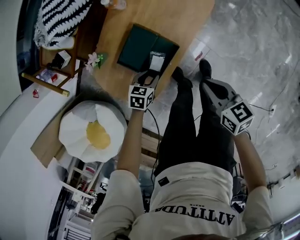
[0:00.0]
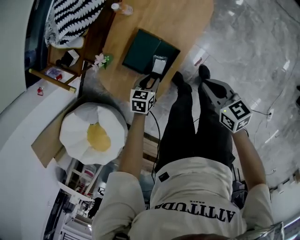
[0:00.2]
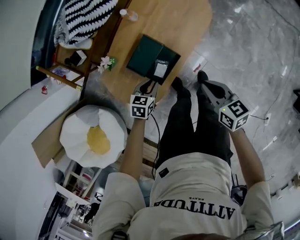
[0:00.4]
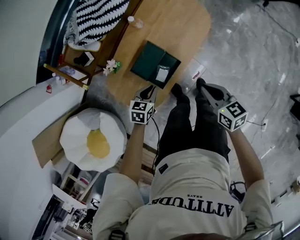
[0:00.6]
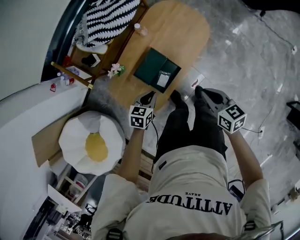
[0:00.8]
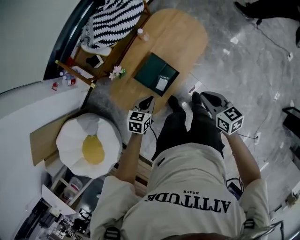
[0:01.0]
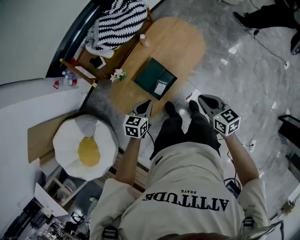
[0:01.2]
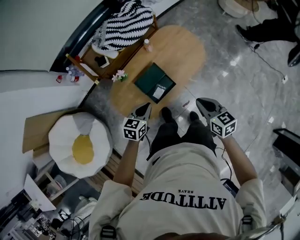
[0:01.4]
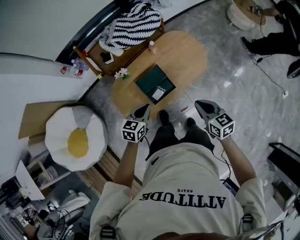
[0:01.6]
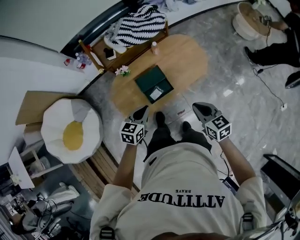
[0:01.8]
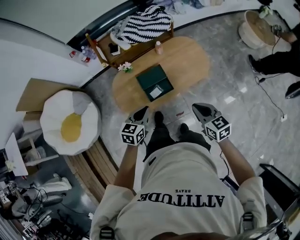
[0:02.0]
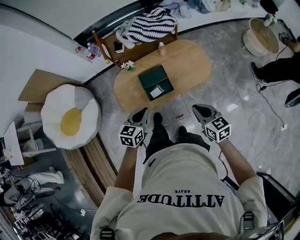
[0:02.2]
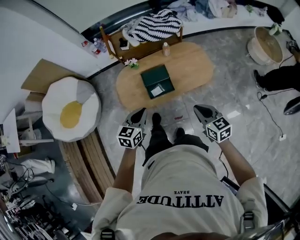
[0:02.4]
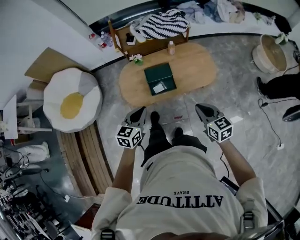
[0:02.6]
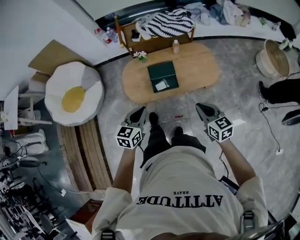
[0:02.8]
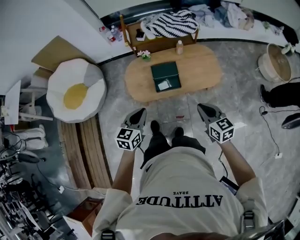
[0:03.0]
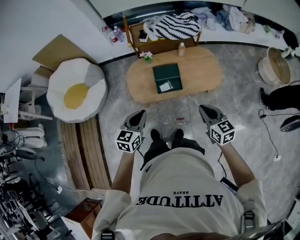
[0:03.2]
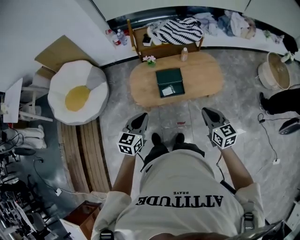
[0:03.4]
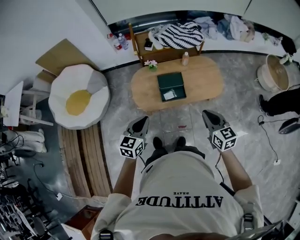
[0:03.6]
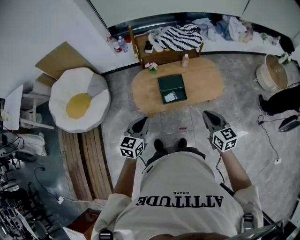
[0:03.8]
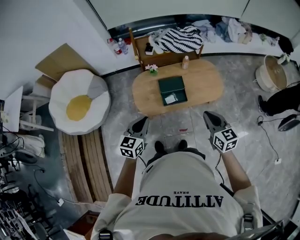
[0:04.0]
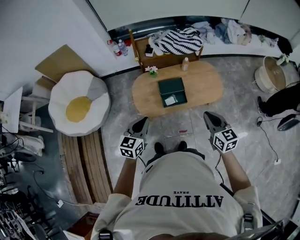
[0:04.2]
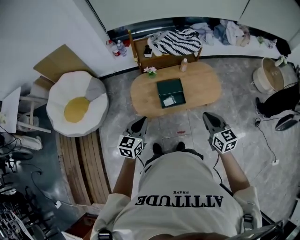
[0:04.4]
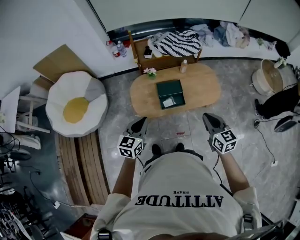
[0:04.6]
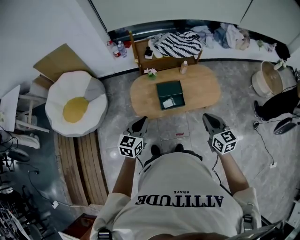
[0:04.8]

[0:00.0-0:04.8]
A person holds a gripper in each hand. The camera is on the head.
0:00.0 to 0:01.6: The two grippers go some 30 cm upward. The left gripper turns by some 40 degrees, and closes up, while the right gripper changes its angle by about 30 degrees.
0:01.6 to 0:03.2: The right gripper ends up roughly 15 cm from where it was, and changes its angle by roughly 20 degrees; the left gripper ends up about 25 cm from where it was, and rotates some 30 degrees.
0:03.2 to 0:04.8: Both grippers move to the left, some 5 cm.

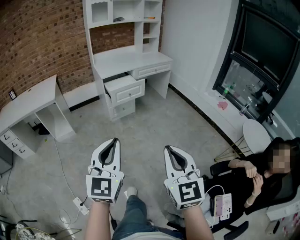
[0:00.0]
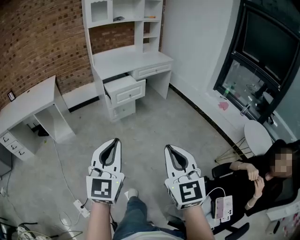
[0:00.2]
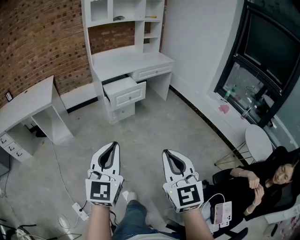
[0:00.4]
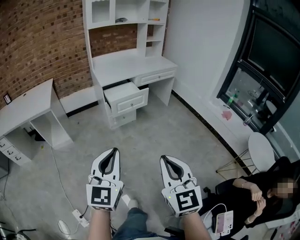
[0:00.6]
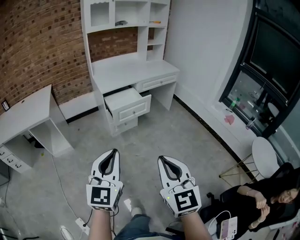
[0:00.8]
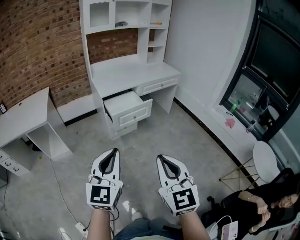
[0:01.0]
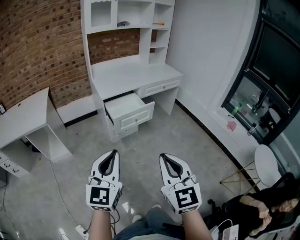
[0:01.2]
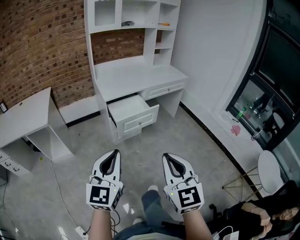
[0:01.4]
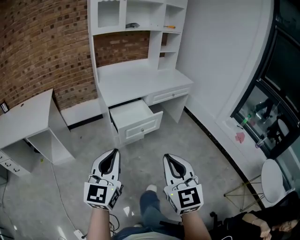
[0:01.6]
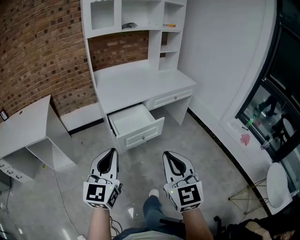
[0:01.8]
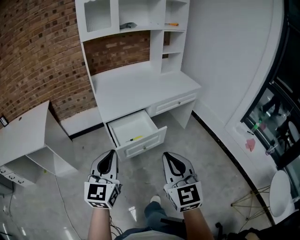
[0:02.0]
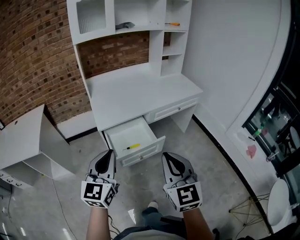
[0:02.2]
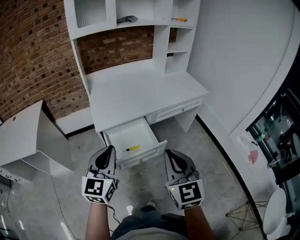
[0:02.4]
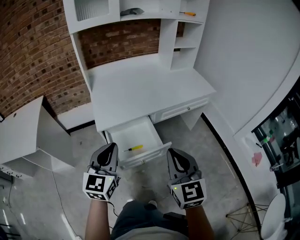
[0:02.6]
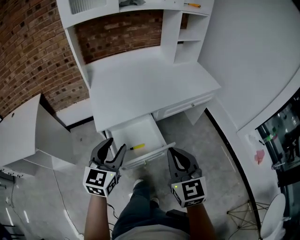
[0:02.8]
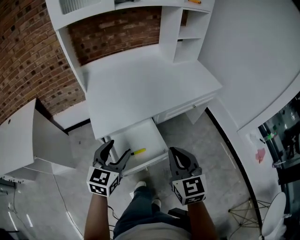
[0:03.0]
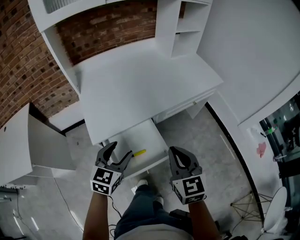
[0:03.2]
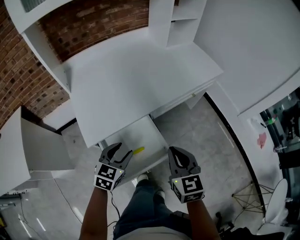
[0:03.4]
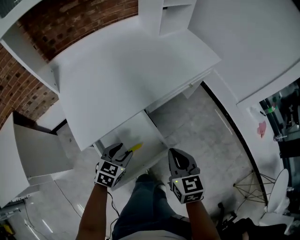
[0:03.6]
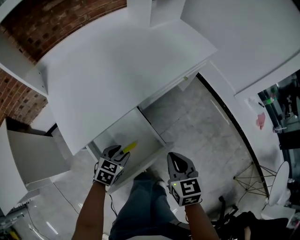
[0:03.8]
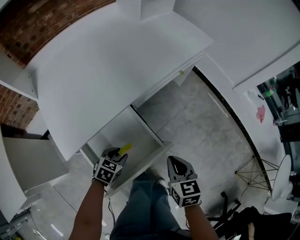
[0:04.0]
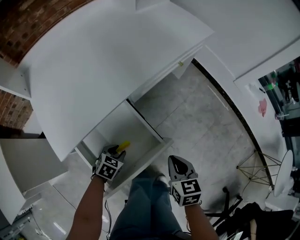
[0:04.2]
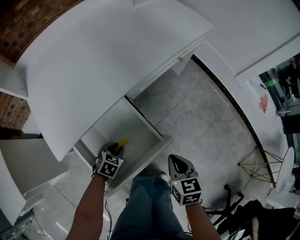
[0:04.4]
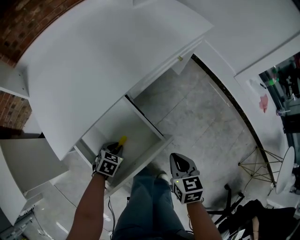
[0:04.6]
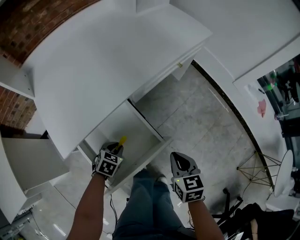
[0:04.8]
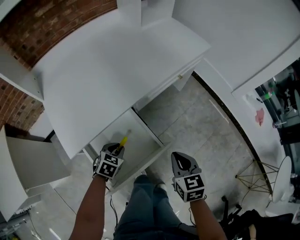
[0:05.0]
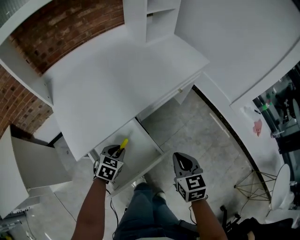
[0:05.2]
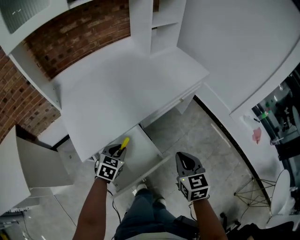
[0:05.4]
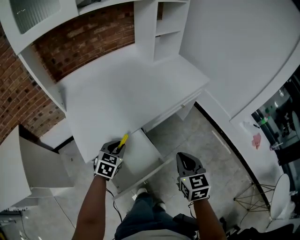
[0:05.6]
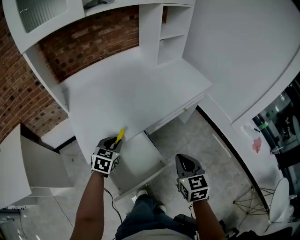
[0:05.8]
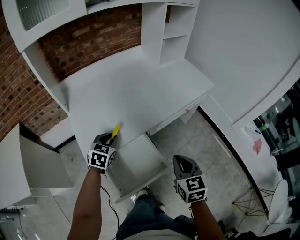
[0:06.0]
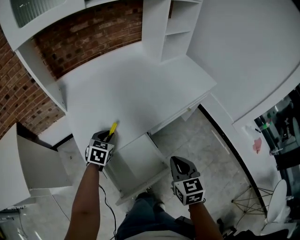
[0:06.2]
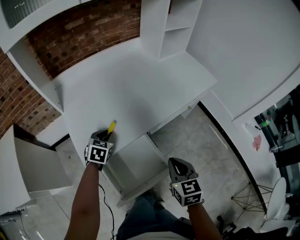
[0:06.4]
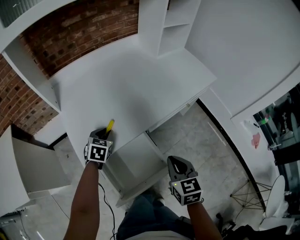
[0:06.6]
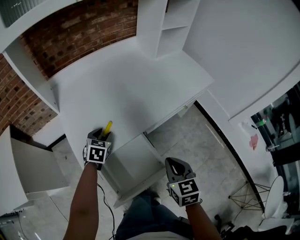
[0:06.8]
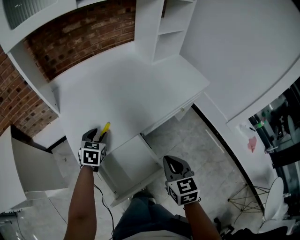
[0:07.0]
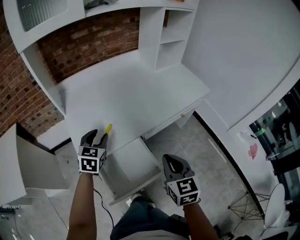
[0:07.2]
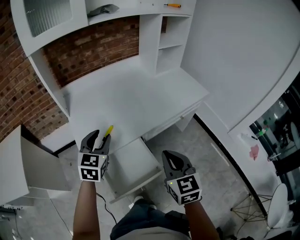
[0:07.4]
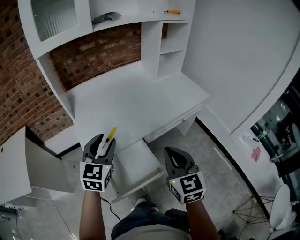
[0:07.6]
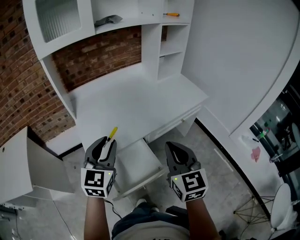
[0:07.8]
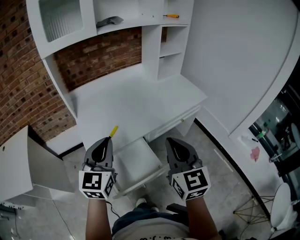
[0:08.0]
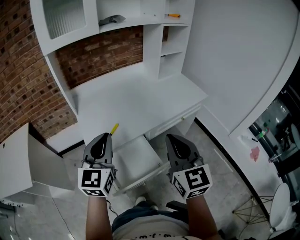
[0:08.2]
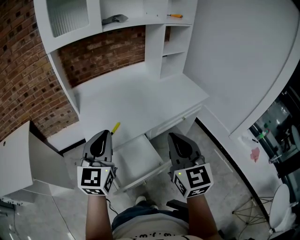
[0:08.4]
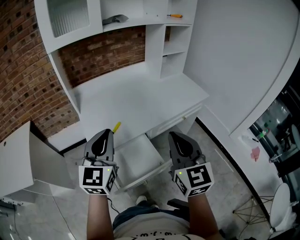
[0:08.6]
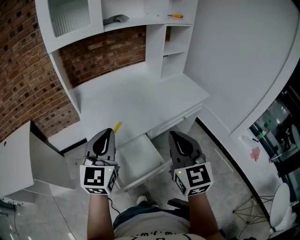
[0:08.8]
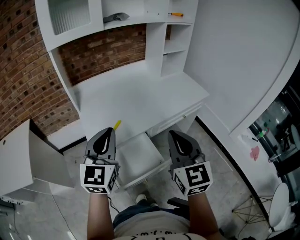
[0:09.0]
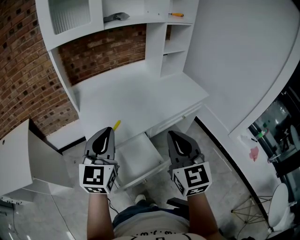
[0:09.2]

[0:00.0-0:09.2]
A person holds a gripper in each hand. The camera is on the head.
0:00.0 to 0:01.6: The pair of grippers is taken forward, approximately 40 cm.
0:01.6 to 0:03.0: Both grippers are carried forward, approximately 50 cm. The left gripper changes its angle by roughly 30 degrees, and opens.
0:03.0 to 0:04.6: Both grippers travel together downward, roughly 35 cm. The left gripper tips its fingers downward by approximately 40 degrees, and closes. Meanwhile the right gripper turns by approximately 40 degrees.
0:04.6 to 0:06.2: The right gripper is displaced upward, forward and to the left by some 20 cm, and rotates approximately 20 degrees. Meanwhile the left gripper is displaced upward, forward and to the left by approximately 30 cm, and swivels some 30 degrees.
0:06.2 to 0:07.6: The right gripper moves upward, approximately 15 cm. The left gripper is displaced upward and backward by roughly 25 cm, and changes its angle by roughly 30 degrees.
0:07.6 to 0:09.2: The left gripper moves upward and backward, some 10 cm, and closes its fingers; the right gripper moves upward, some 5 cm.

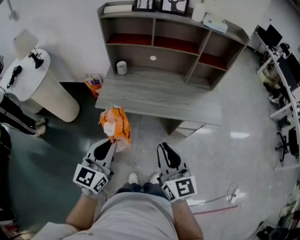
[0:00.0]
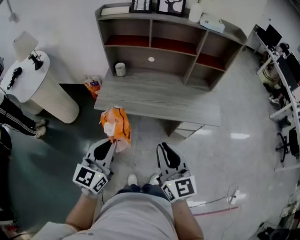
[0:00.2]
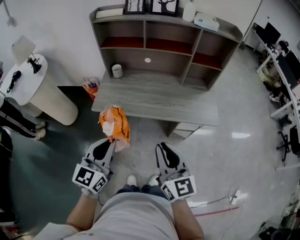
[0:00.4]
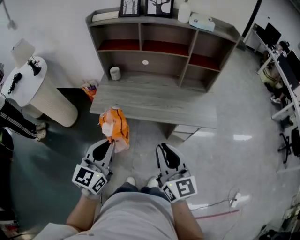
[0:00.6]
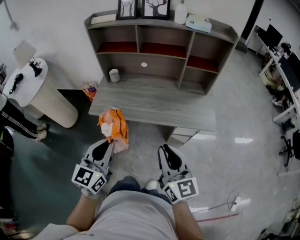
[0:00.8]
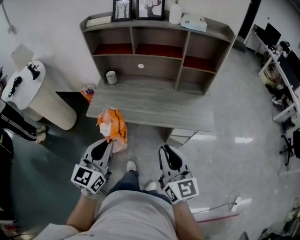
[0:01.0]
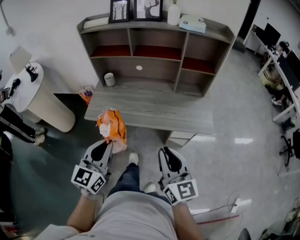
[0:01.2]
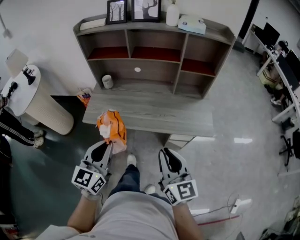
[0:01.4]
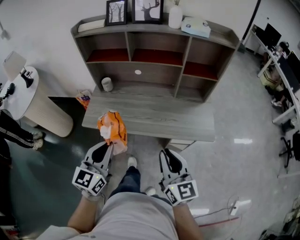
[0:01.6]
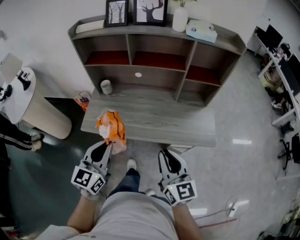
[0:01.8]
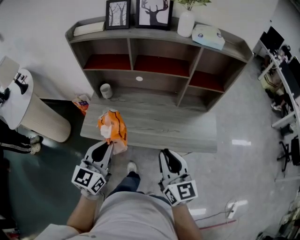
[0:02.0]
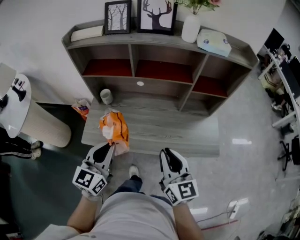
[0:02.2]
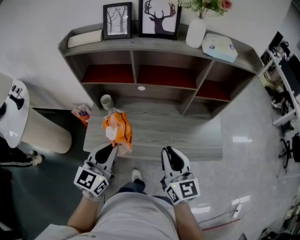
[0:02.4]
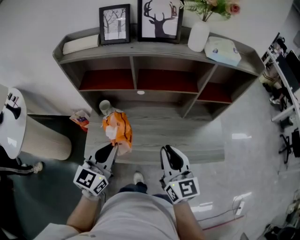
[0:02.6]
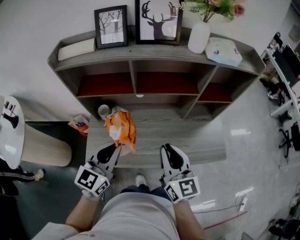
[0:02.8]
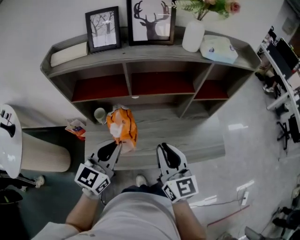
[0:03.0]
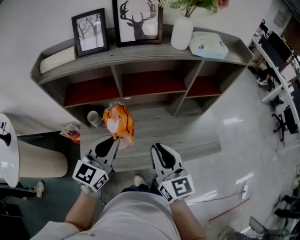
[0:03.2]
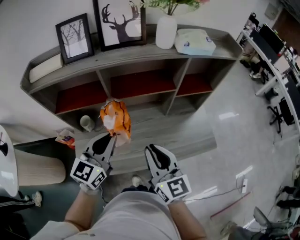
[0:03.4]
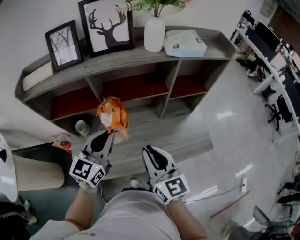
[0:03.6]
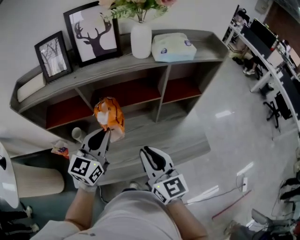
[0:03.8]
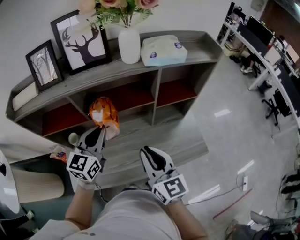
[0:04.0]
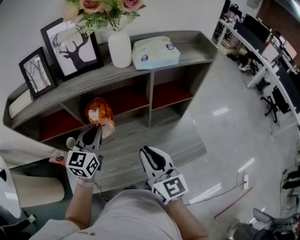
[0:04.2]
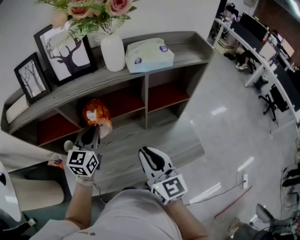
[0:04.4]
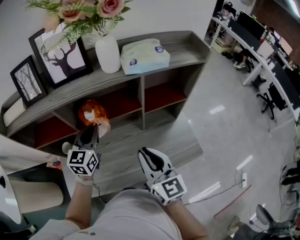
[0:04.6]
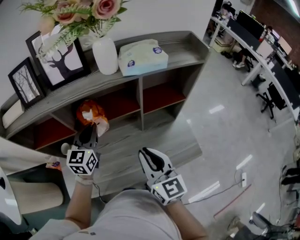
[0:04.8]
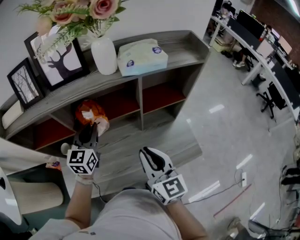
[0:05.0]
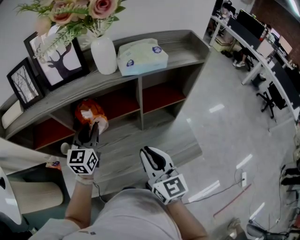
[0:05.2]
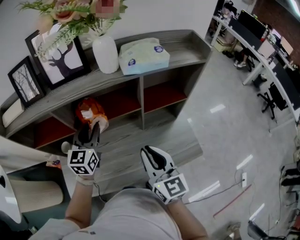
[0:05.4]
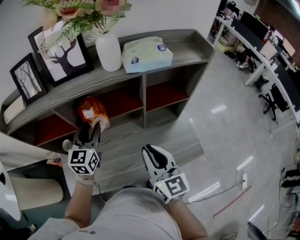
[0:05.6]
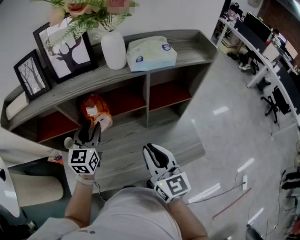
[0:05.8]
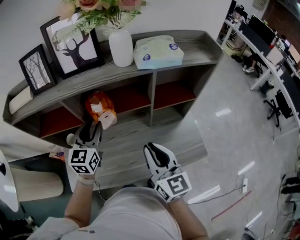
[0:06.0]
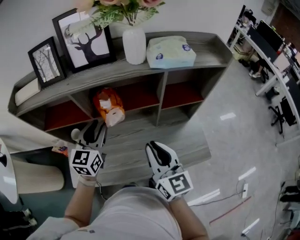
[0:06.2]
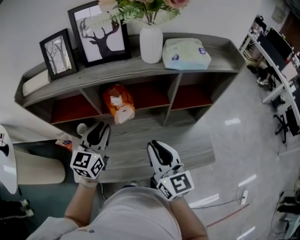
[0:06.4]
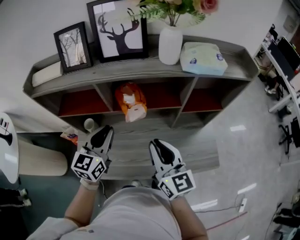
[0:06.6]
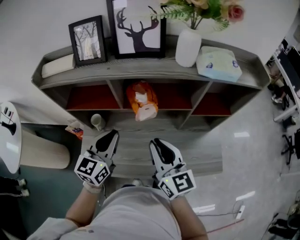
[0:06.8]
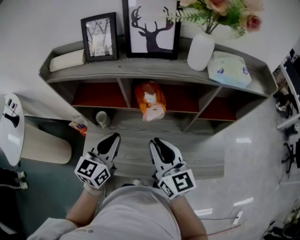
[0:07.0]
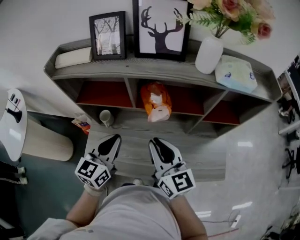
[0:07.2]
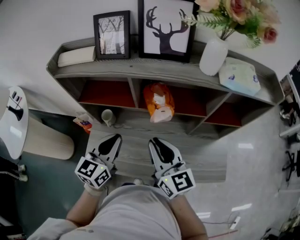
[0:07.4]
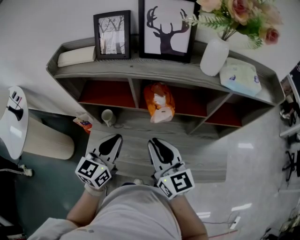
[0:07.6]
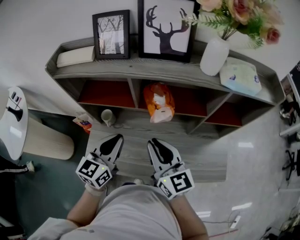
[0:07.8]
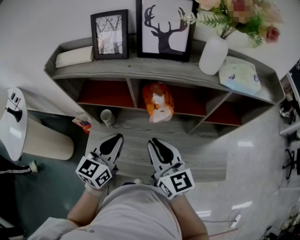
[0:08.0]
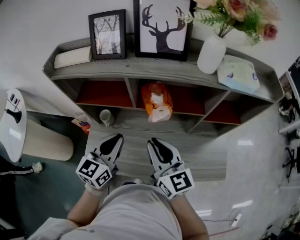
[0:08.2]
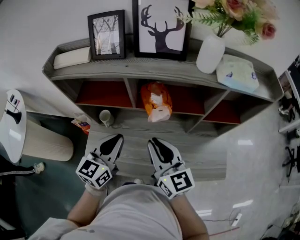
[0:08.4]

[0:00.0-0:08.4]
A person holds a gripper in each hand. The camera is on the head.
0:00.0 to 0:01.4: Both grippers move to the right and forward, roughly 15 cm.
0:01.4 to 0:02.8: The left gripper heads forward, covering about 30 cm; the right gripper moves forward and to the left, about 30 cm.
0:02.8 to 0:04.2: The right gripper goes roughly 10 cm to the right and forward; the left gripper is displaced forward and to the right by roughly 25 cm.
0:04.2 to 0:05.6: The left gripper opens its fingers.
0:05.6 to 0:07.0: The right gripper shifts about 15 cm to the left, and changes its angle by about 20 degrees. The left gripper moves backward and to the left, some 15 cm, and closes up.
0:07.0 to 0:08.4: There are only small adjustments of the grippers.

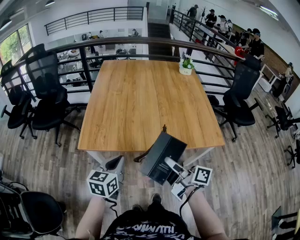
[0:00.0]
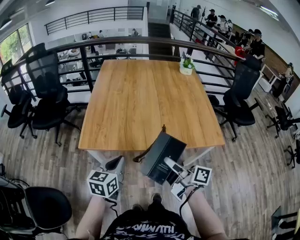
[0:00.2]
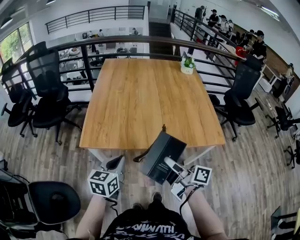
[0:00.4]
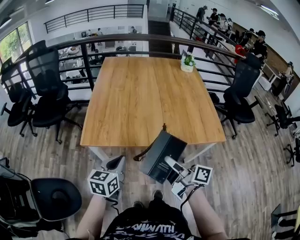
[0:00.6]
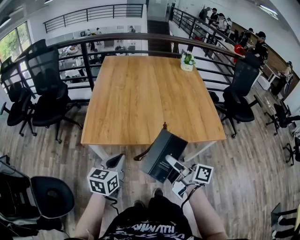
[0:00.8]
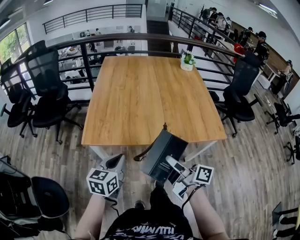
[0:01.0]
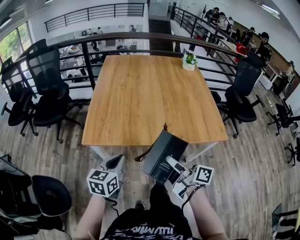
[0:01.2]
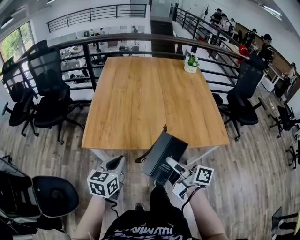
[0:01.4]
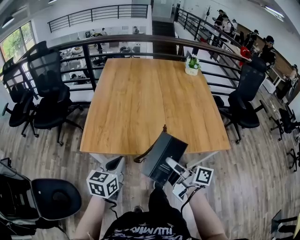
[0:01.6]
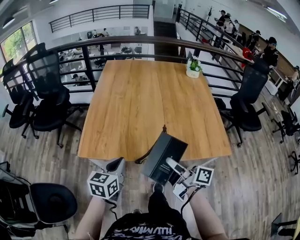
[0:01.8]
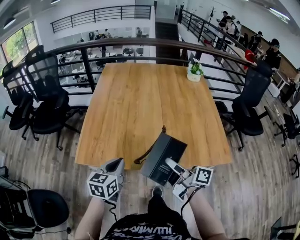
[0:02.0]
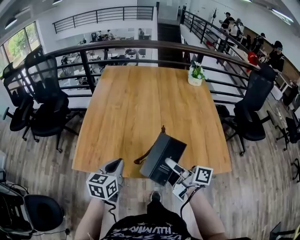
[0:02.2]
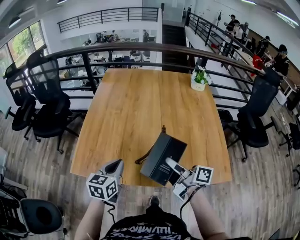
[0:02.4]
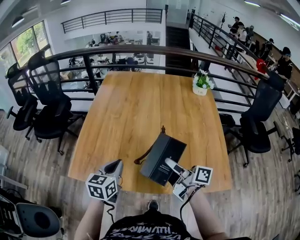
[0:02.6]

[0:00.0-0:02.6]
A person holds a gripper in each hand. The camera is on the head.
0:00.0 to 0:01.2: The grippers move only a little.
0:01.2 to 0:02.6: The grippers both shift forward and to the right by approximately 25 cm.
